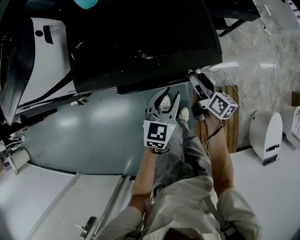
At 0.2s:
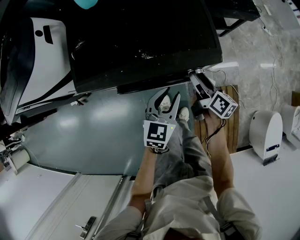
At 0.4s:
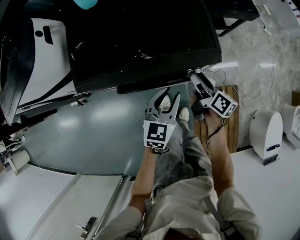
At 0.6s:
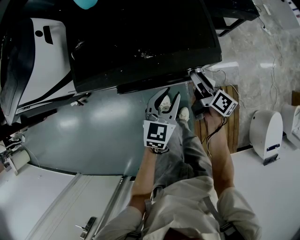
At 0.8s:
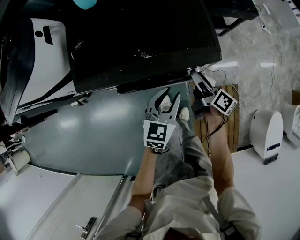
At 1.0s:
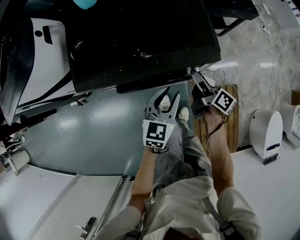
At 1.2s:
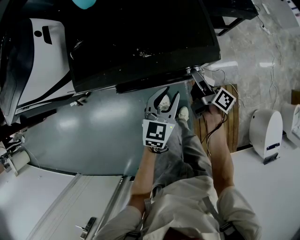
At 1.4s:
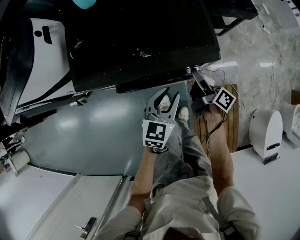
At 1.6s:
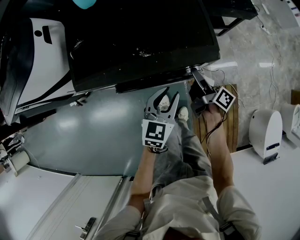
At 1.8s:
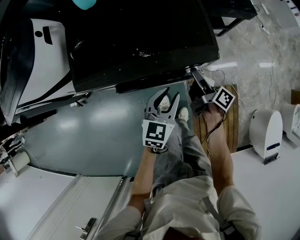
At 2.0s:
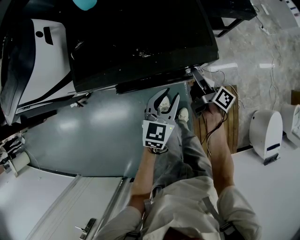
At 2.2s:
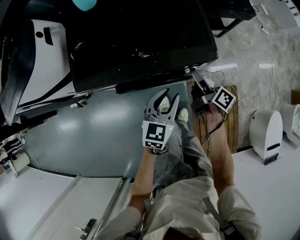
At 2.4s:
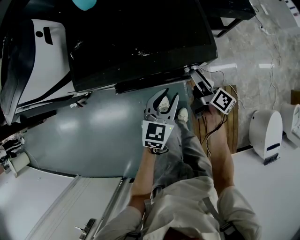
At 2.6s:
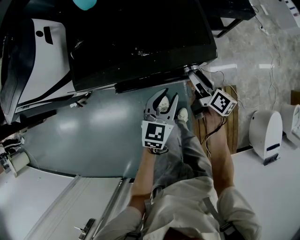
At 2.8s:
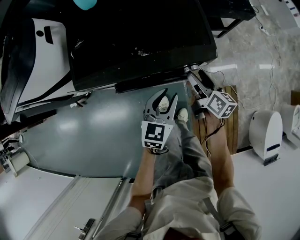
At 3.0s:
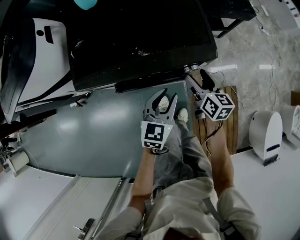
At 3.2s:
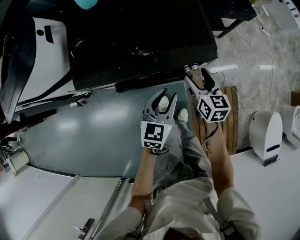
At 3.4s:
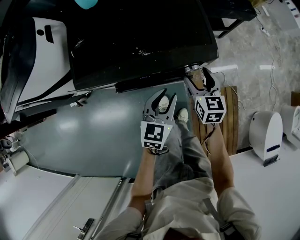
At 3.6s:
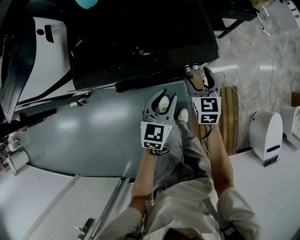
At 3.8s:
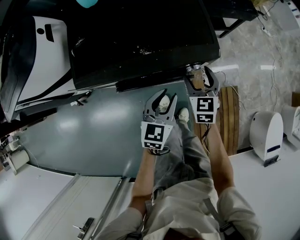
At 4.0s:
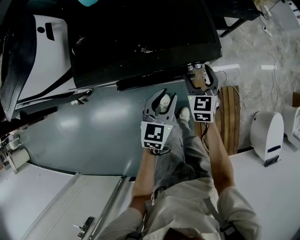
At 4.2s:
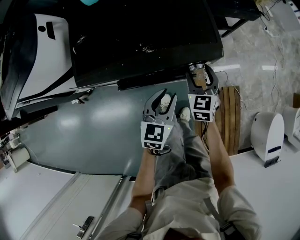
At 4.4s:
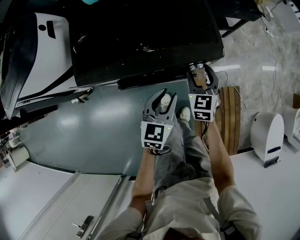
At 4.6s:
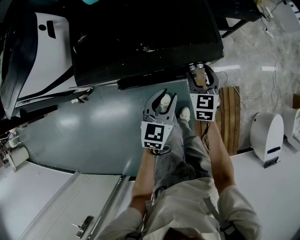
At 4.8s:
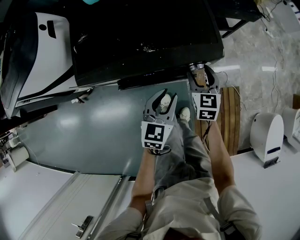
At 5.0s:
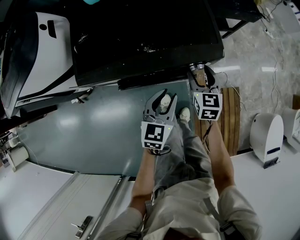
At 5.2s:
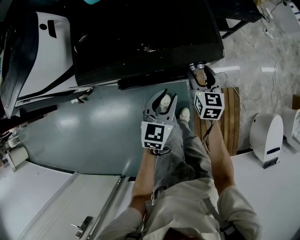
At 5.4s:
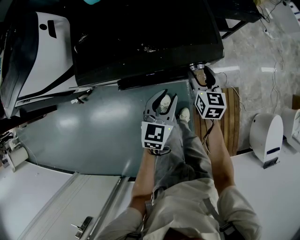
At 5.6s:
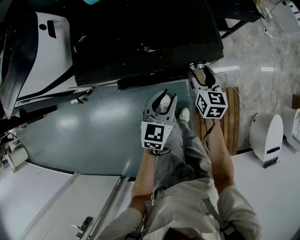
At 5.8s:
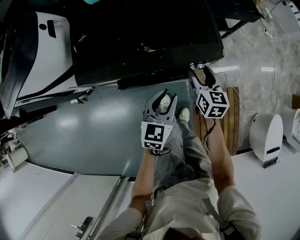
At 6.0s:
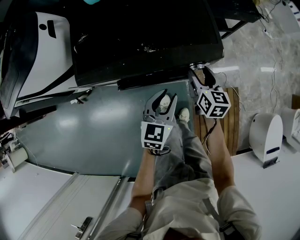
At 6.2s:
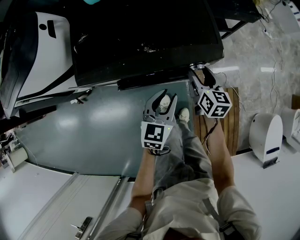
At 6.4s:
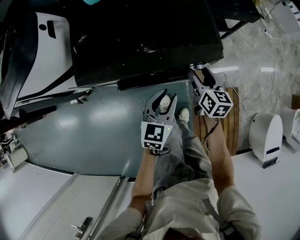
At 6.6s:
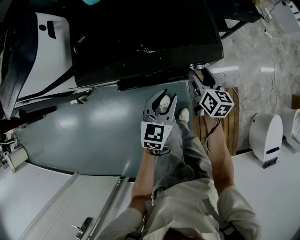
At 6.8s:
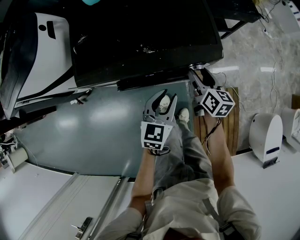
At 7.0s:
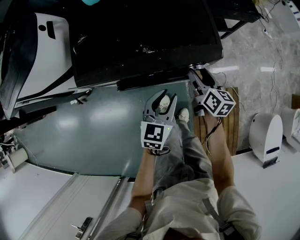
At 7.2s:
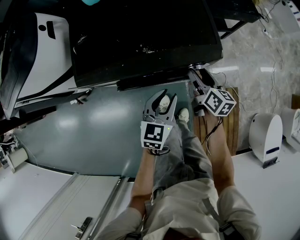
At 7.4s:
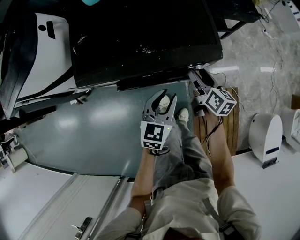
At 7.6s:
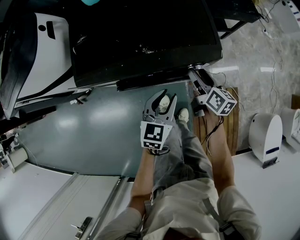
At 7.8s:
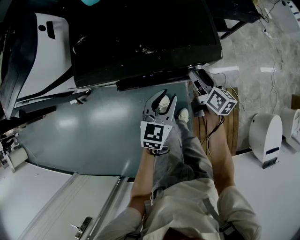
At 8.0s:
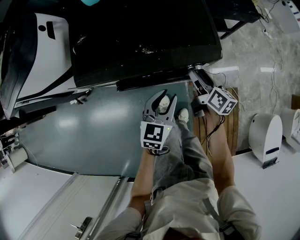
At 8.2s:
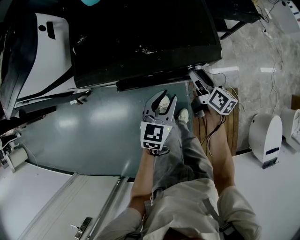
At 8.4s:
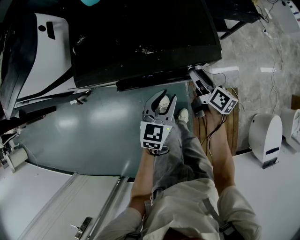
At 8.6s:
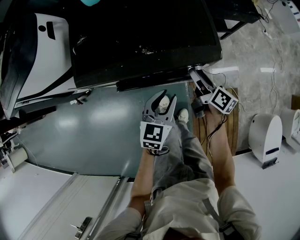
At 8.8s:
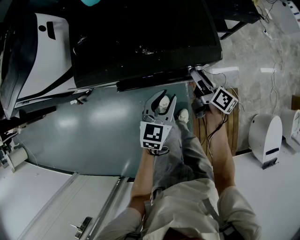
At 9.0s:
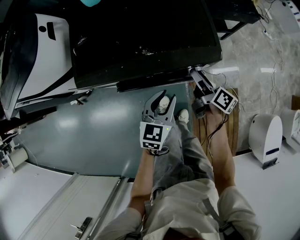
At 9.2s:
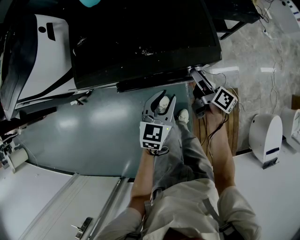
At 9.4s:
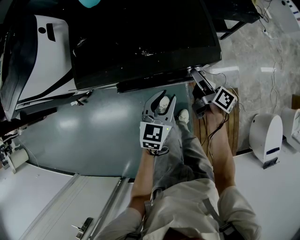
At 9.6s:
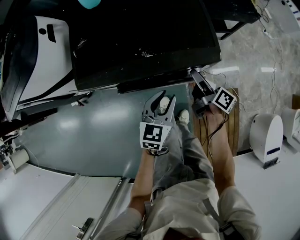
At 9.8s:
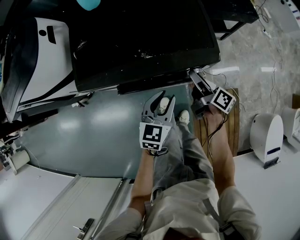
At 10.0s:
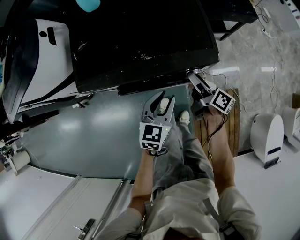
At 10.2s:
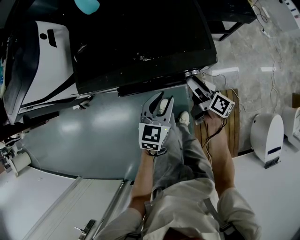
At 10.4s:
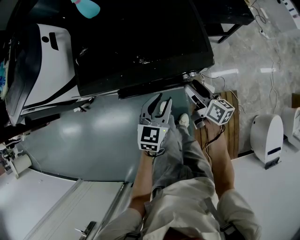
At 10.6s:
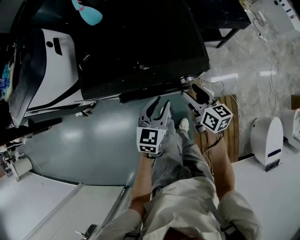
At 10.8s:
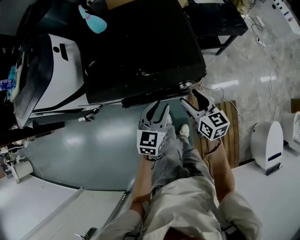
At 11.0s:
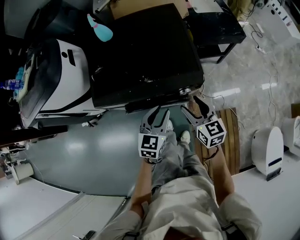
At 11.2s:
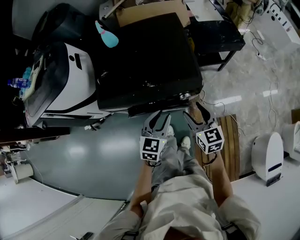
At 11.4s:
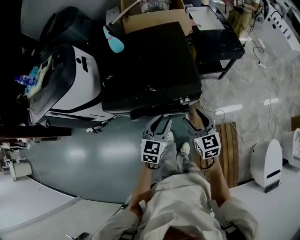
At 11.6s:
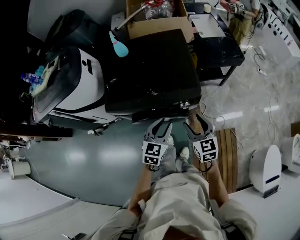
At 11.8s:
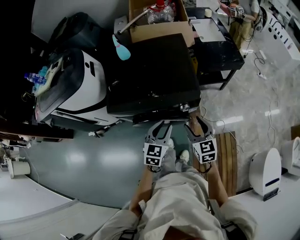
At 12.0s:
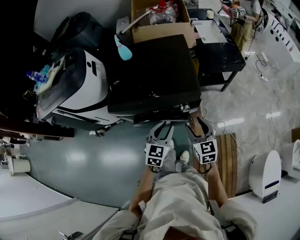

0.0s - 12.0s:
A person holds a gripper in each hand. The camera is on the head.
0.0s - 1.6s: The right gripper swivels about 30 degrees.
1.6s - 3.0s: The right gripper twists roughly 50 degrees counterclockwise, seen from behind.
3.0s - 4.4s: The right gripper rotates some 40 degrees.
4.4s - 6.0s: The right gripper changes its angle by about 30 degrees.
6.0s - 7.6s: The right gripper turns by roughly 30 degrees.
7.6s - 9.0s: The right gripper swivels approximately 20 degrees.
9.0s - 10.4s: The grippers move only a little.
10.4s - 12.0s: The right gripper heads upward and backward, covering roughly 15 cm, and twists roughly 50 degrees counterclockwise, seen from behind. Meanwhile the left gripper is displaced upward by approximately 10 cm.

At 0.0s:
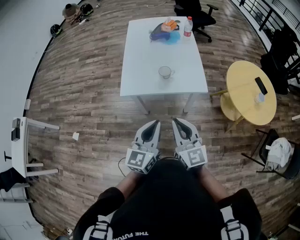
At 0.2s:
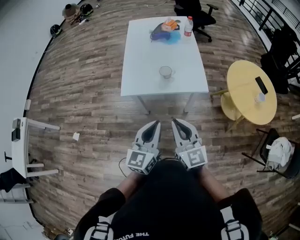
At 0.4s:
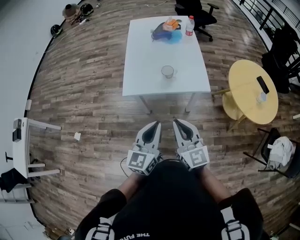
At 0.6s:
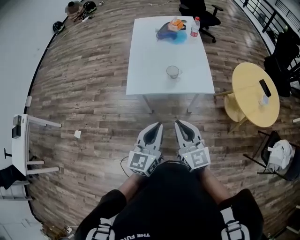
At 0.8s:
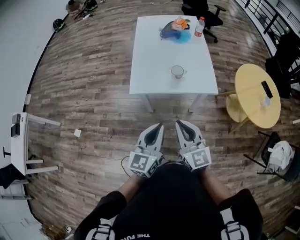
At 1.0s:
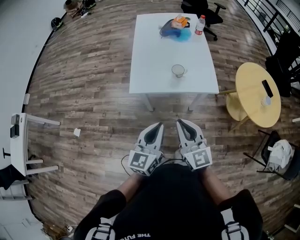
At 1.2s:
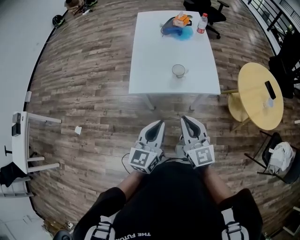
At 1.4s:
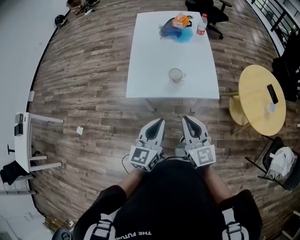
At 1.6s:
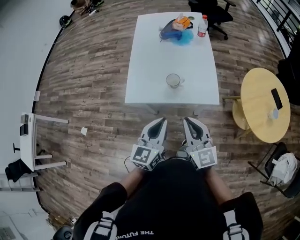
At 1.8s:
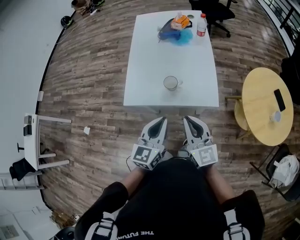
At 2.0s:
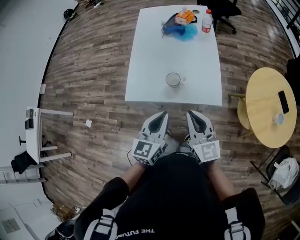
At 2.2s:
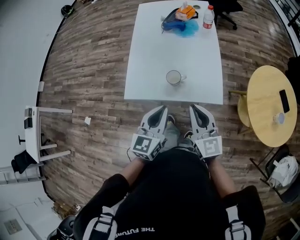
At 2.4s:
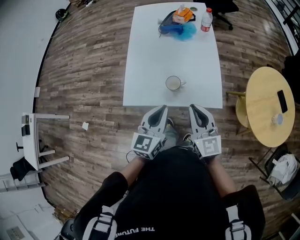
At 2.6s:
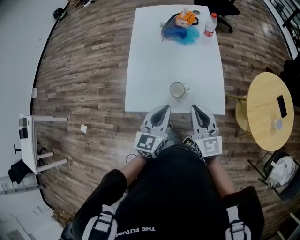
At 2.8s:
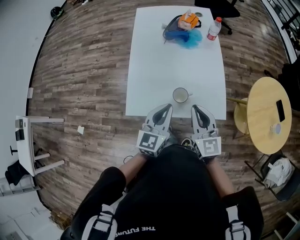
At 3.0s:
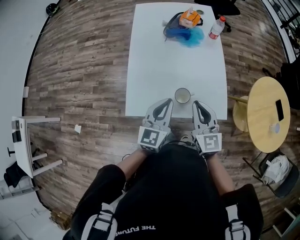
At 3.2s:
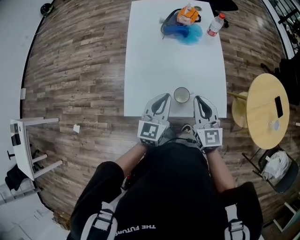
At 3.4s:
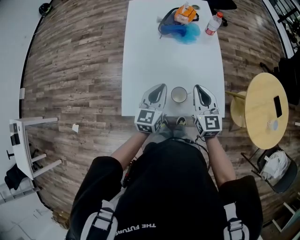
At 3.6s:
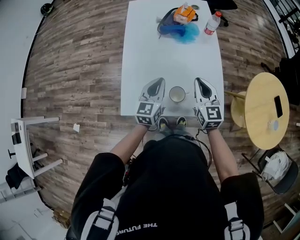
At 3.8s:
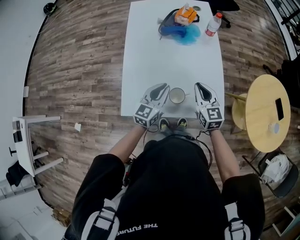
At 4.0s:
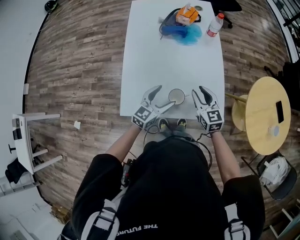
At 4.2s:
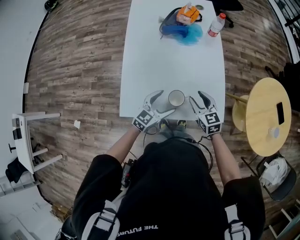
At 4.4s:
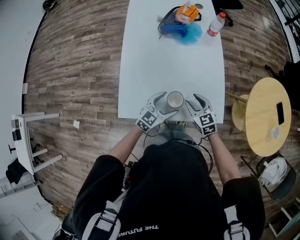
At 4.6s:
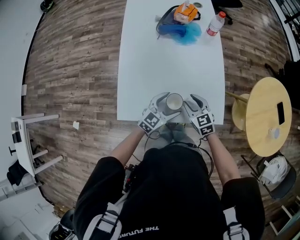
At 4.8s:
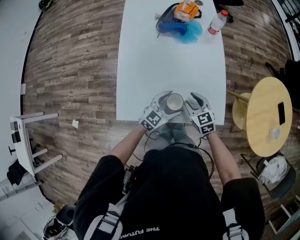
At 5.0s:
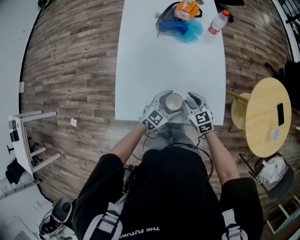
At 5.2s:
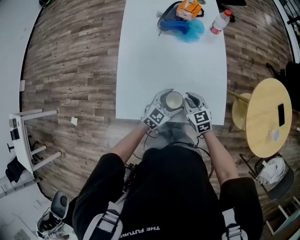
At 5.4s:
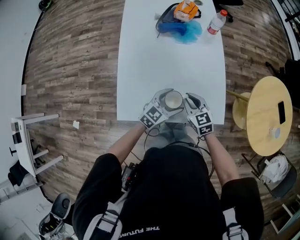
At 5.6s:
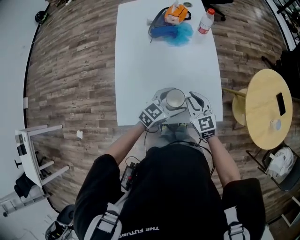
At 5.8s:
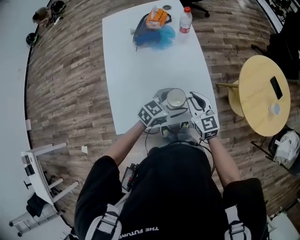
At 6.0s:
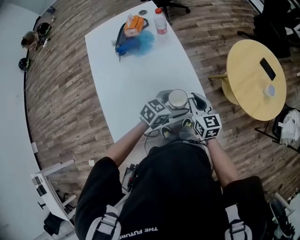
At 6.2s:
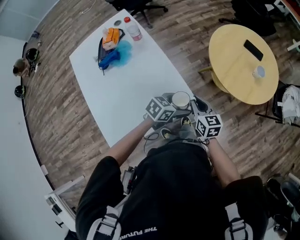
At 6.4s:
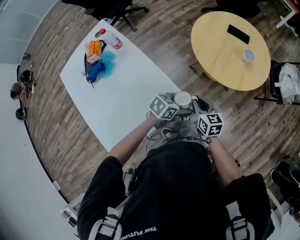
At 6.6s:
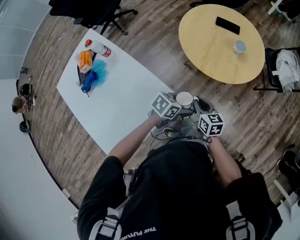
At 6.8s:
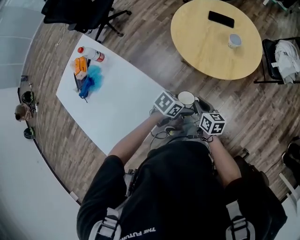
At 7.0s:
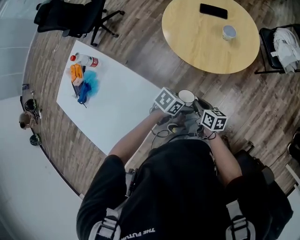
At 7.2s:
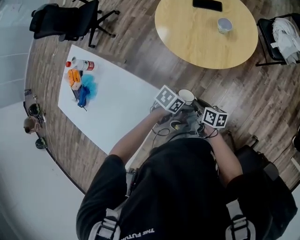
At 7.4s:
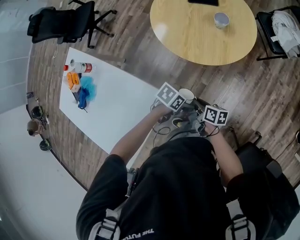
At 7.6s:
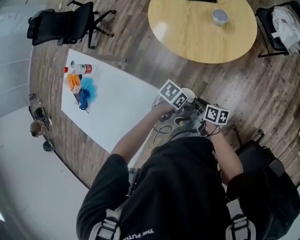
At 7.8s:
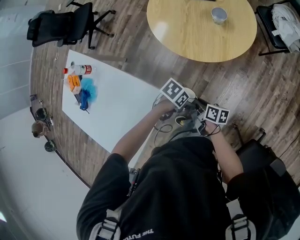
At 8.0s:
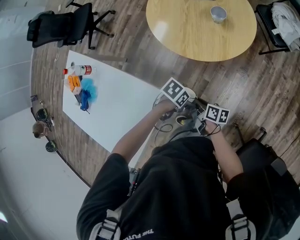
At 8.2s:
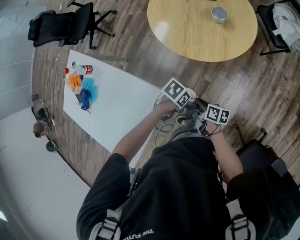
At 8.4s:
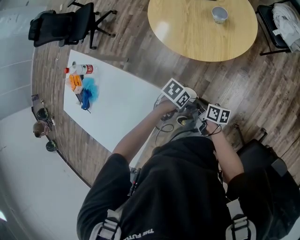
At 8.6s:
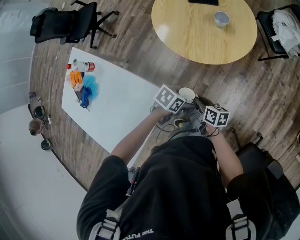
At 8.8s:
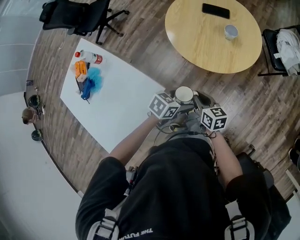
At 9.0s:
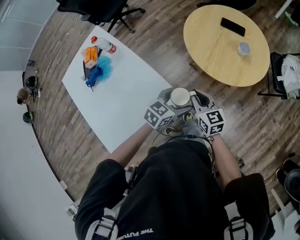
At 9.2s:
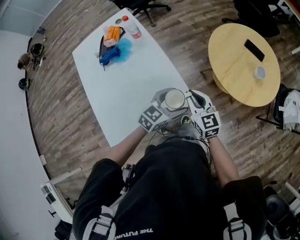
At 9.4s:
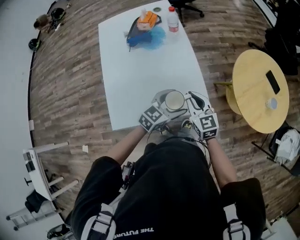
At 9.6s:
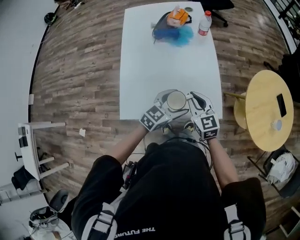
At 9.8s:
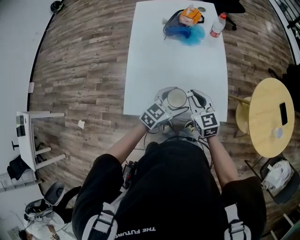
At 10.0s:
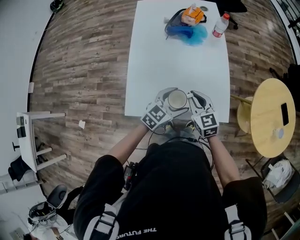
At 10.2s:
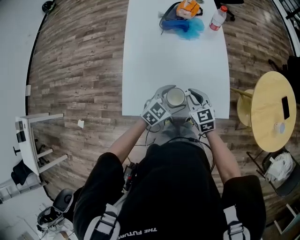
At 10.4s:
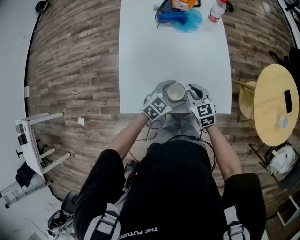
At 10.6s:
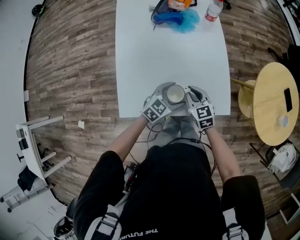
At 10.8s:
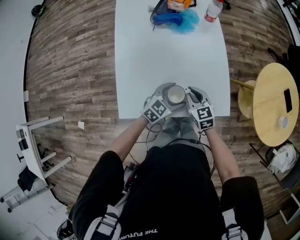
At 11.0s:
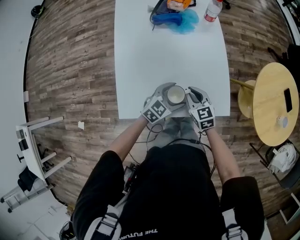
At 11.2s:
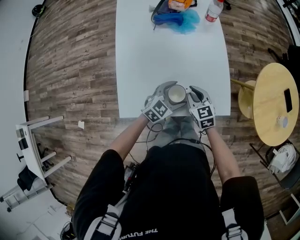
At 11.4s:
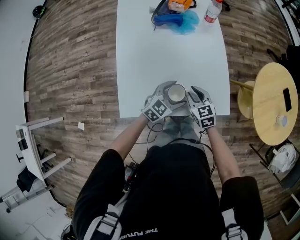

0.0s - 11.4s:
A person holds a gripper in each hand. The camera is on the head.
0.0s - 1.4s: The grippers both shift forward by roughly 10 cm.
1.4s - 2.8s: The two grippers go some 20 cm forward.
2.8s - 4.2s: The grippers both shift downward and forward by roughly 20 cm. The right gripper swivels approximately 20 degrees, and opens. The left gripper rotates some 30 degrees, and opens.
4.2s - 5.6s: The right gripper closes its fingers. The left gripper moves to the right, approximately 5 cm.
5.6s - 7.2s: The right gripper moves approximately 40 cm, and rotates around the line of its fingers by roughly 80 degrees, clockwise from behind. The left gripper moves approximately 40 cm, and swivels approximately 70 degrees.
7.2s - 8.6s: There are only small adjustments of the grippers.
8.6s - 10.0s: Both grippers are carried approximately 40 cm. The right gripper rotates around the line of its fingers by about 80 degrees, counterclockwise from behind. Meanwhile the left gripper swivels roughly 80 degrees.
10.0s - 11.4s: The grippers both shift downward by some 10 cm.
